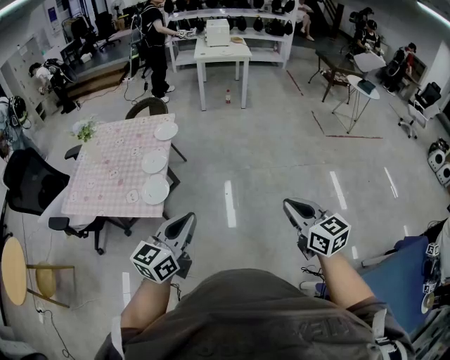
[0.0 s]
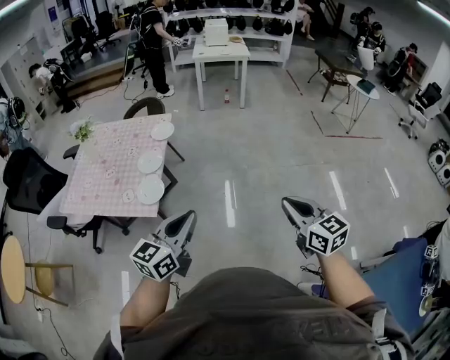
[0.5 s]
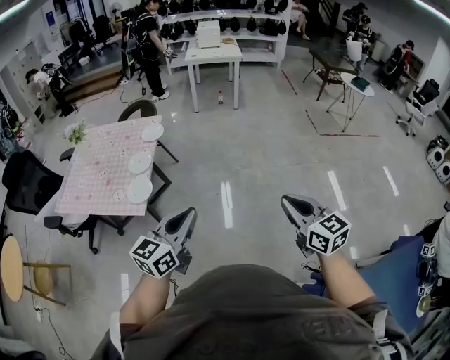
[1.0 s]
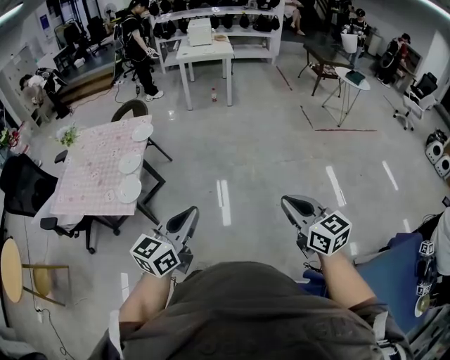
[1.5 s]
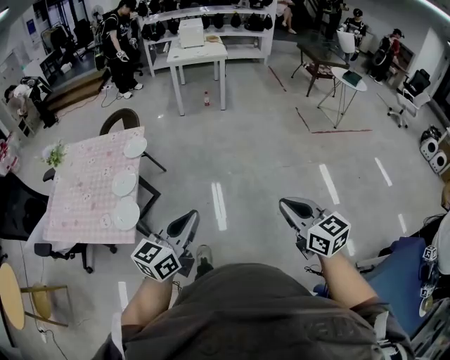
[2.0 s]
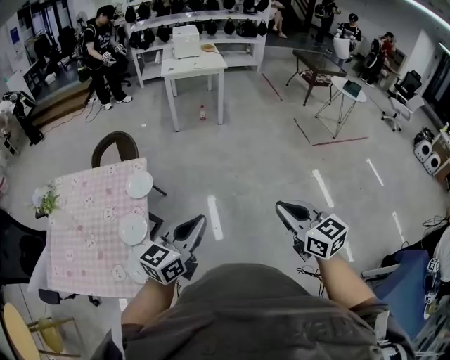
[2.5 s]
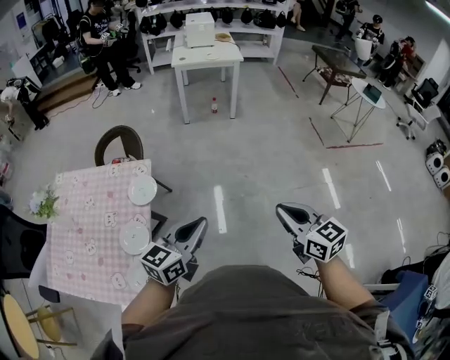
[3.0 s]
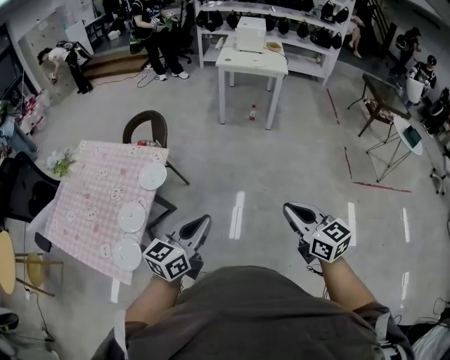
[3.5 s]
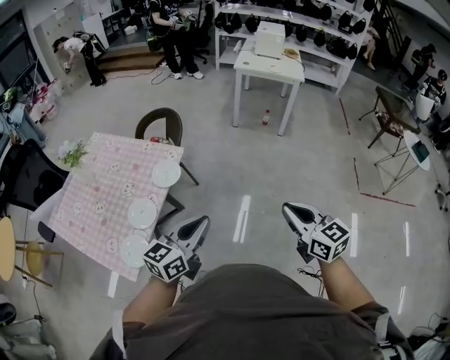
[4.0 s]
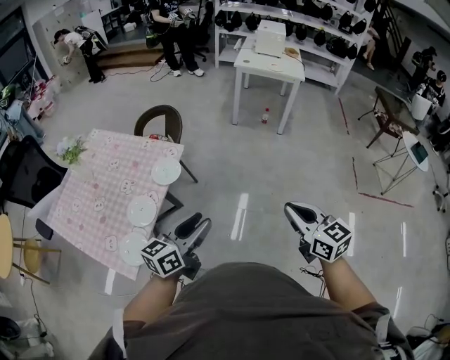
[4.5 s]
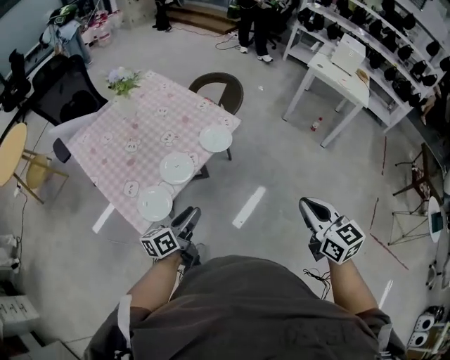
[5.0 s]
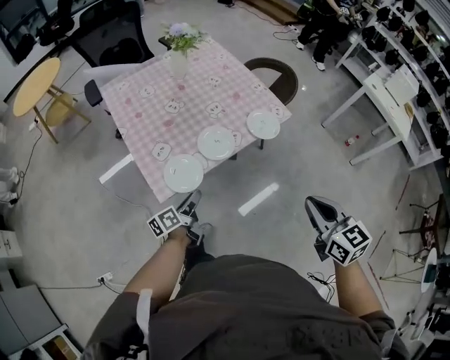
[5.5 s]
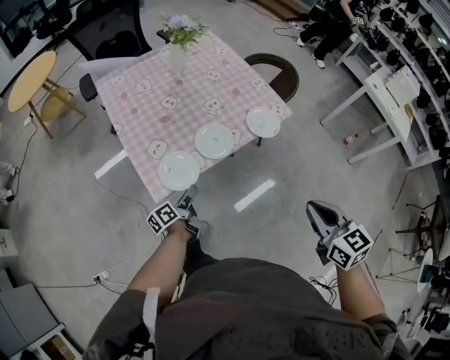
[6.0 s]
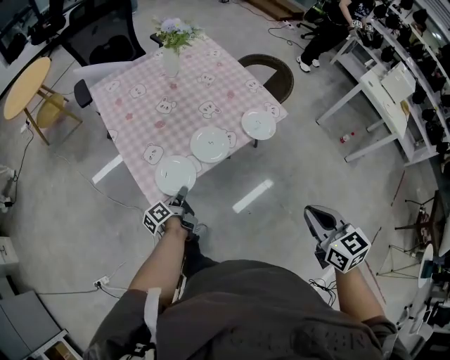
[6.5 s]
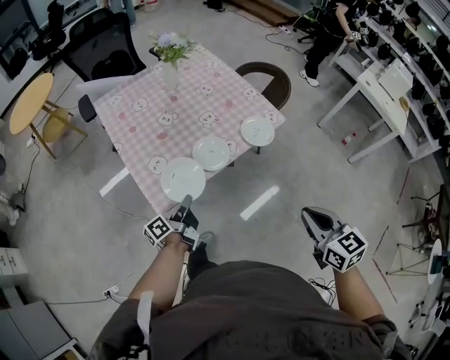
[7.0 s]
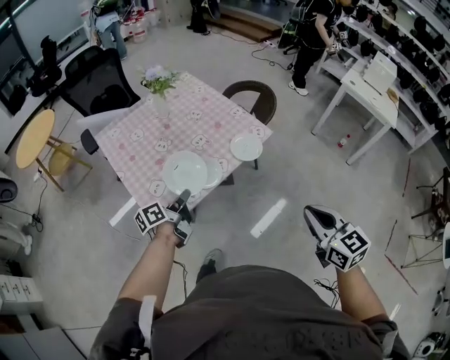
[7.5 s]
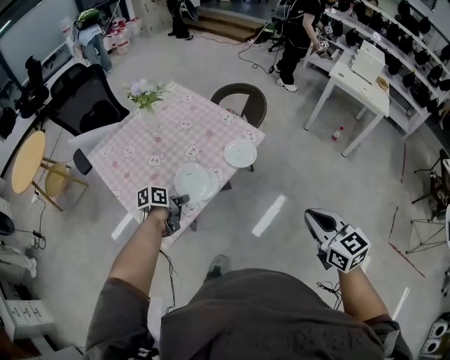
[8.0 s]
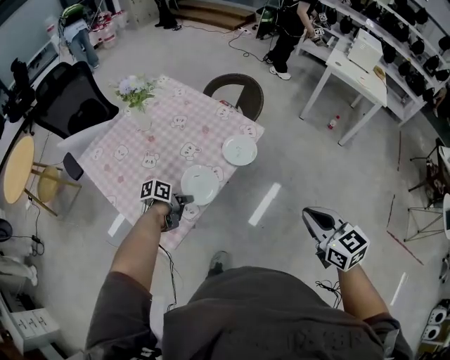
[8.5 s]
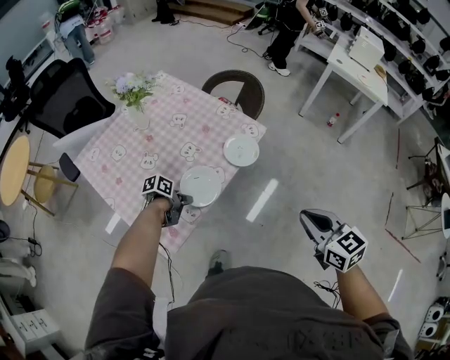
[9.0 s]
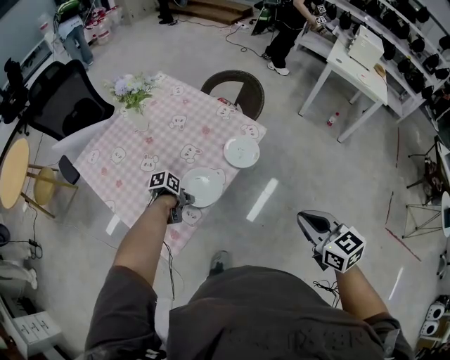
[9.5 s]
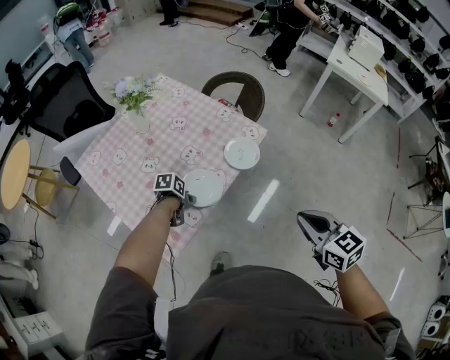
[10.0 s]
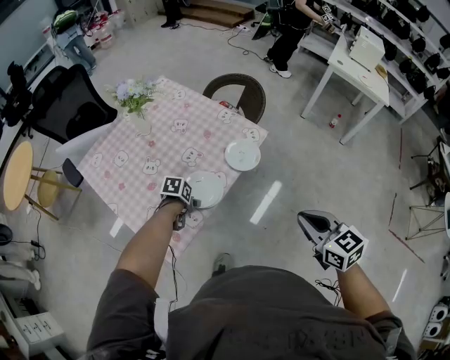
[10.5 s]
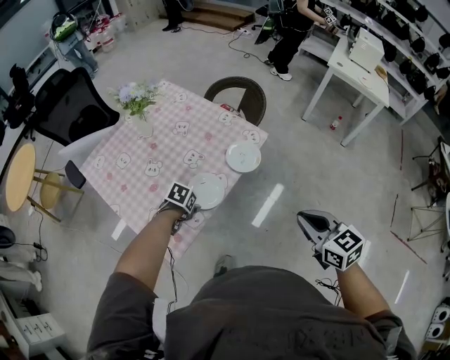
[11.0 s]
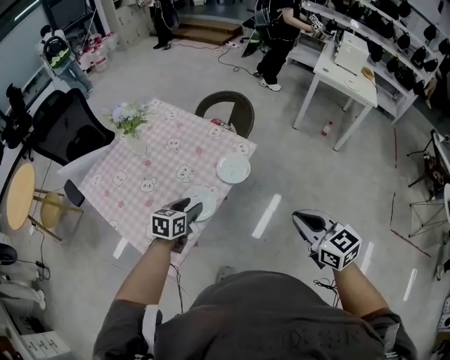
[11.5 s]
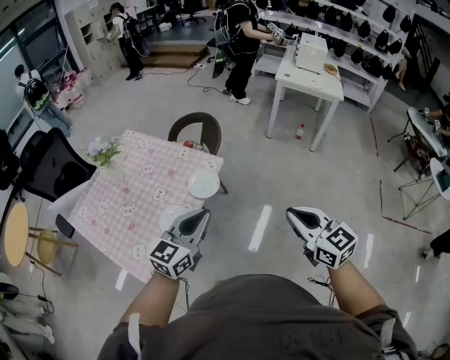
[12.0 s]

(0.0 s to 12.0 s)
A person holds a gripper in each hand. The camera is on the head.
0.0 s - 2.0 s: The grippers both shift to the right and forward by approximately 15 cm.
2.0 s - 4.0 s: Both grippers move forward, roughly 35 cm. The right gripper turns by approximately 20 degrees.
4.0 s - 6.0 s: The right gripper changes place by roughly 25 cm, and rotates some 40 degrees. The left gripper travels downward by some 30 cm, swivels approximately 80 degrees, and opens its fingers.
6.0 s - 8.0 s: The left gripper ends up some 15 cm from where it was, changes its angle by roughly 50 degrees, and closes. The right gripper changes place by approximately 5 cm.
8.0 s - 10.0 s: The right gripper travels to the left by approximately 5 cm; the left gripper travels downward by some 10 cm, changes its angle by about 30 degrees, and opens up.
10.0 s - 12.0 s: The right gripper travels to the right and upward by about 15 cm; the left gripper goes roughly 40 cm upward and to the right, tilts its fingers roughly 50 degrees upward, and closes.

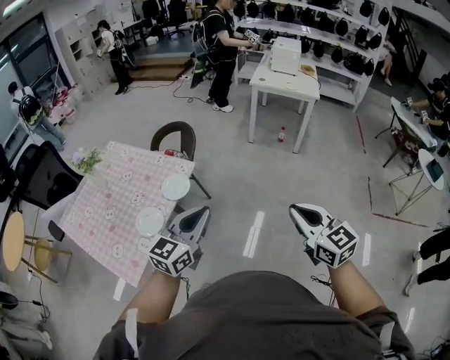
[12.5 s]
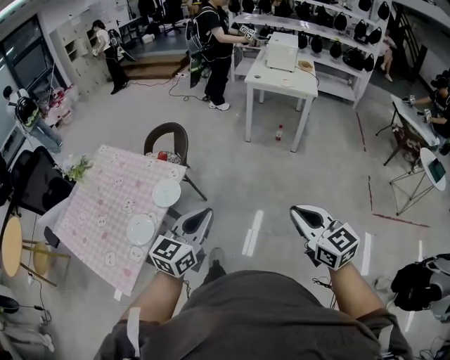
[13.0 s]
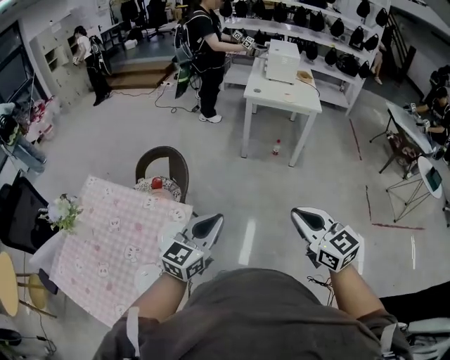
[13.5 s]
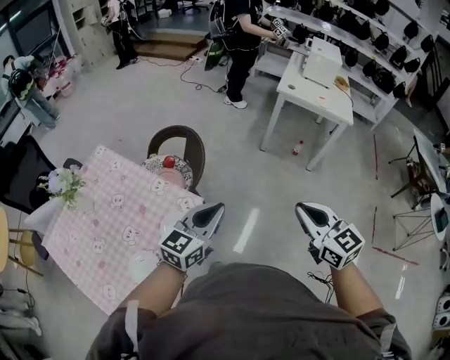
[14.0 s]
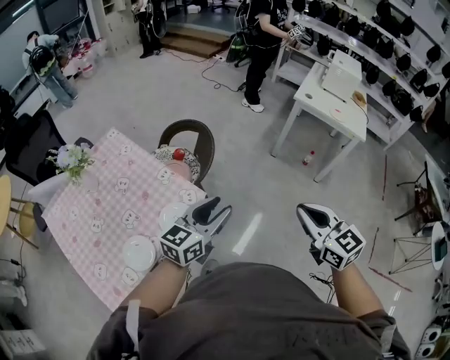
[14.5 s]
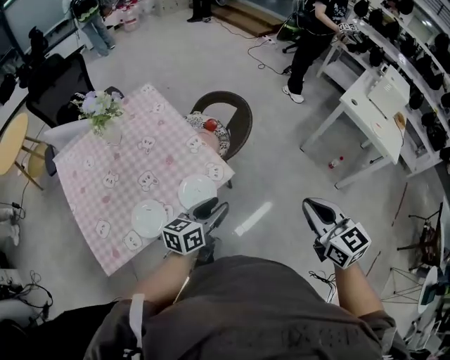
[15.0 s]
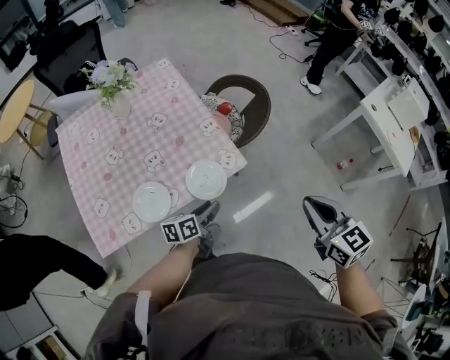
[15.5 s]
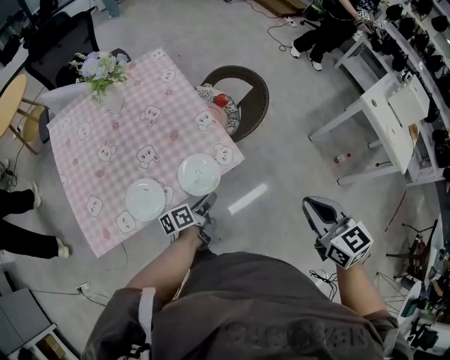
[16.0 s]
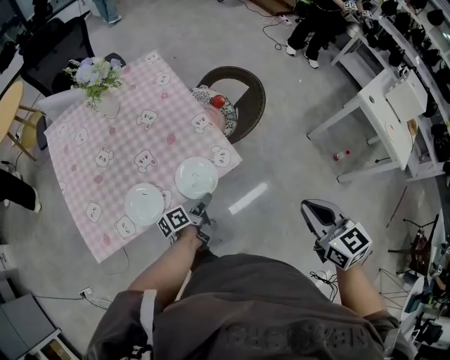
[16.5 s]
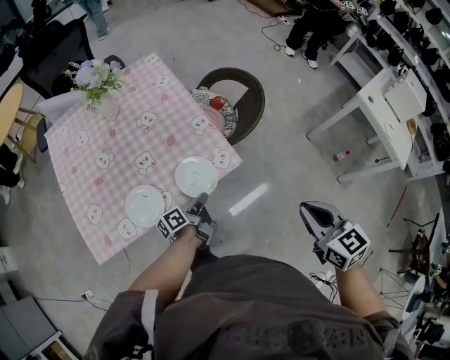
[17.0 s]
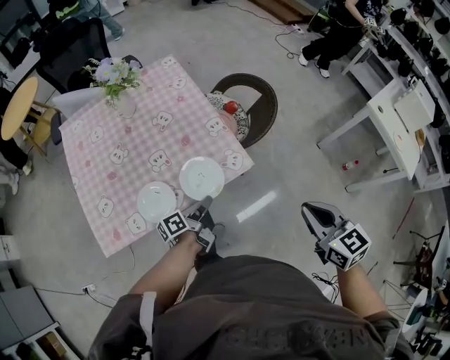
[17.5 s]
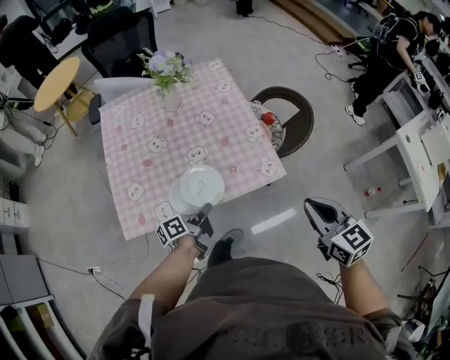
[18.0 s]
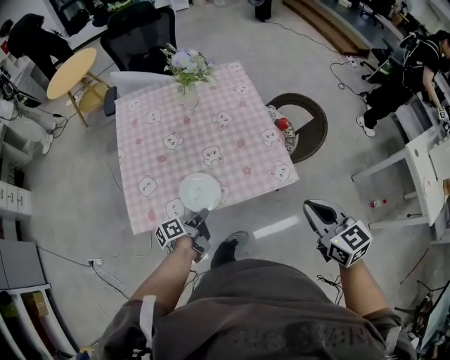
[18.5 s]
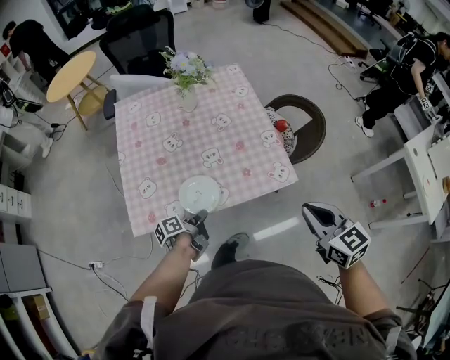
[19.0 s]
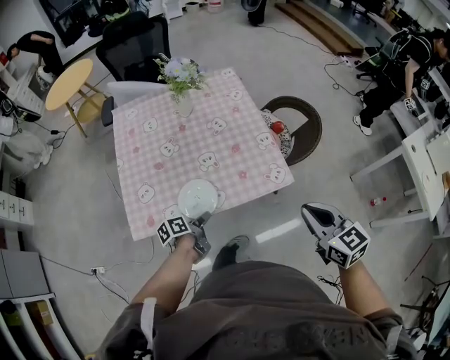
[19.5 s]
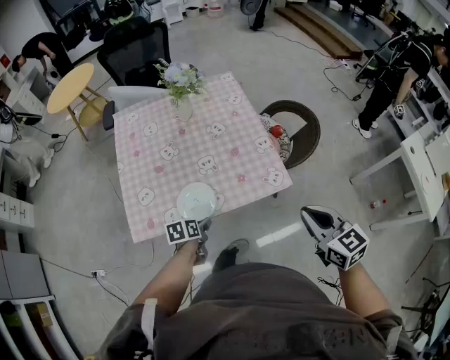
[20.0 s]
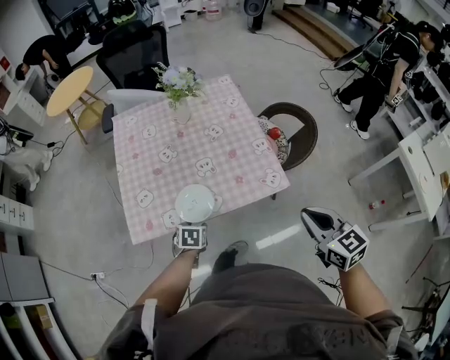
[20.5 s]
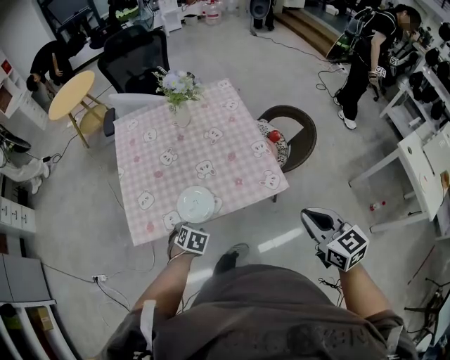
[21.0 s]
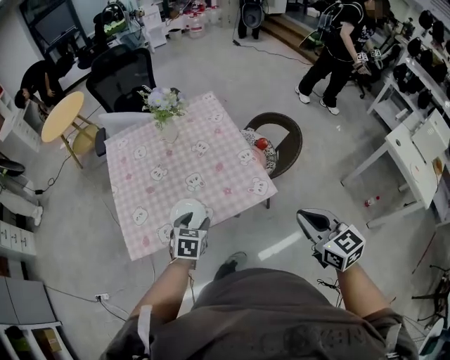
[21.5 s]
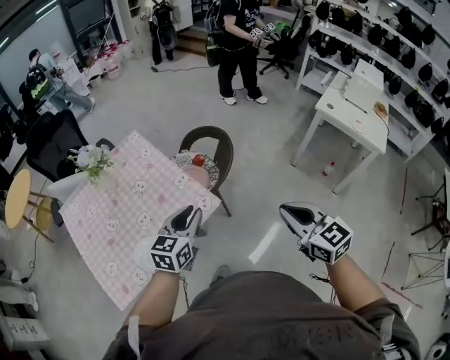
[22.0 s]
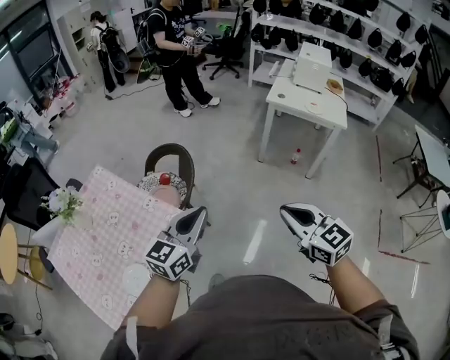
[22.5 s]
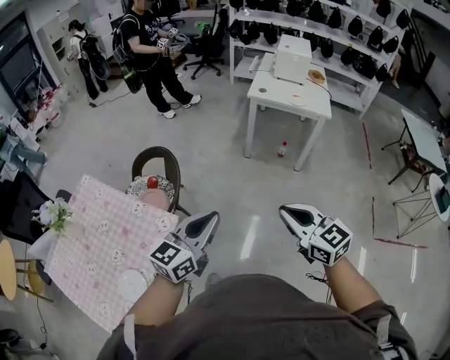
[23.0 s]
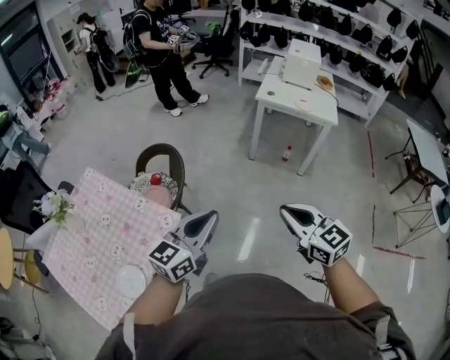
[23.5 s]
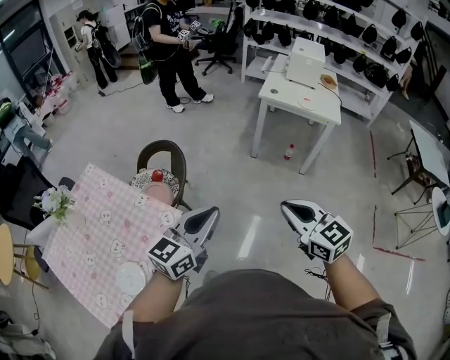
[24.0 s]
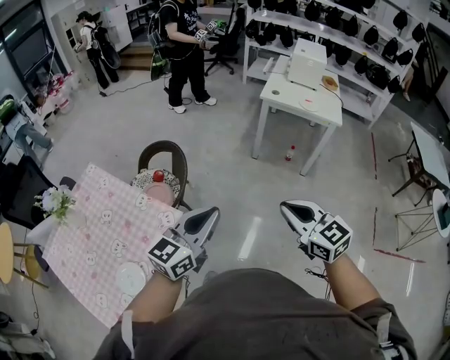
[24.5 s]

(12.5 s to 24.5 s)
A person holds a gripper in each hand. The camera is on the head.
12.5 s - 14.5 s: Both grippers travel together forward, some 30 cm. The left gripper opens.
14.5 s - 16.5 s: The left gripper moves downward, approximately 30 cm, and twists roughly 70 degrees counterclockwise, seen from behind; the right gripper moves roughly 15 cm, and turns by about 20 degrees.
16.5 s - 18.5 s: Both grippers move to the left, roughly 15 cm. The left gripper closes up.
18.5 s - 20.5 s: The left gripper tips its fingers downward by approximately 40 degrees, and opens its fingers.
20.5 s - 22.5 s: The right gripper ends up roughly 30 cm from where it was, and swivels approximately 40 degrees. The left gripper shifts by some 50 cm, tilts its fingers about 60 degrees upward, and closes its fingers.
22.5 s - 24.5 s: The left gripper is displaced to the right by about 5 cm.

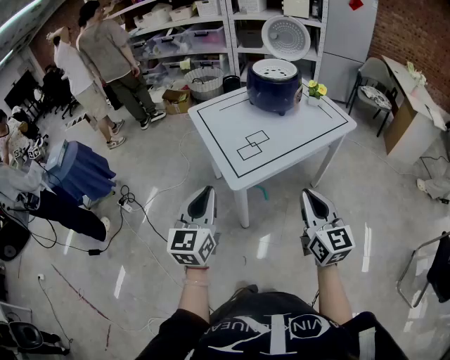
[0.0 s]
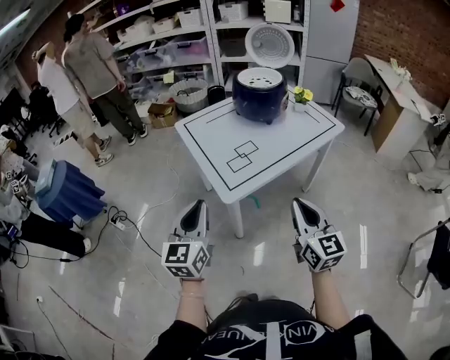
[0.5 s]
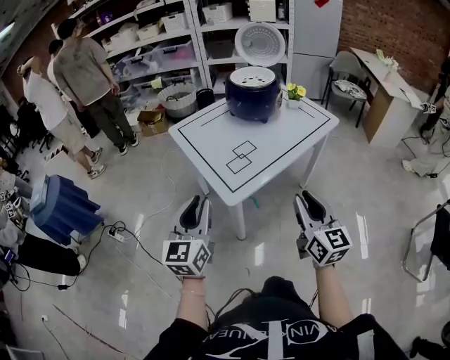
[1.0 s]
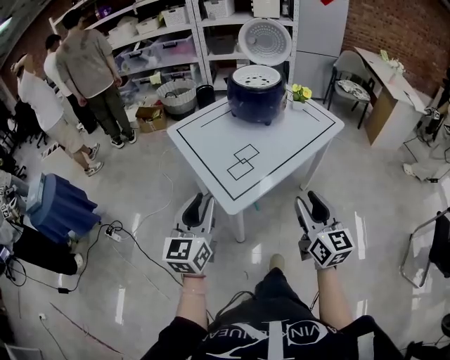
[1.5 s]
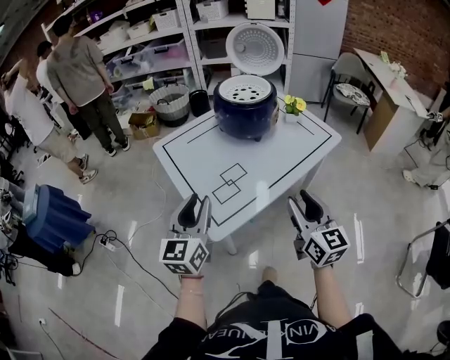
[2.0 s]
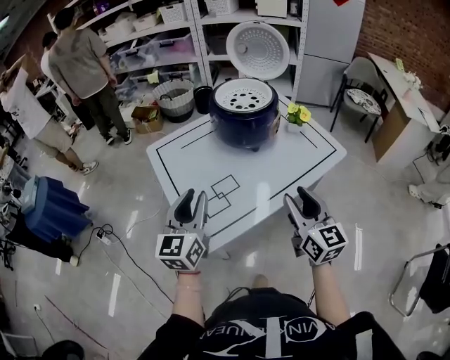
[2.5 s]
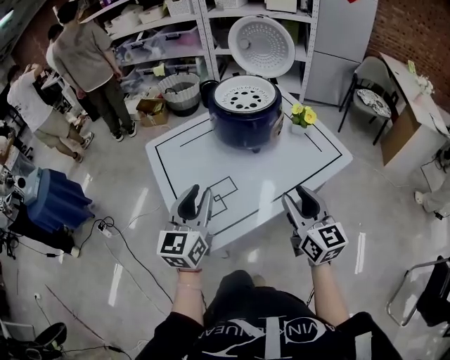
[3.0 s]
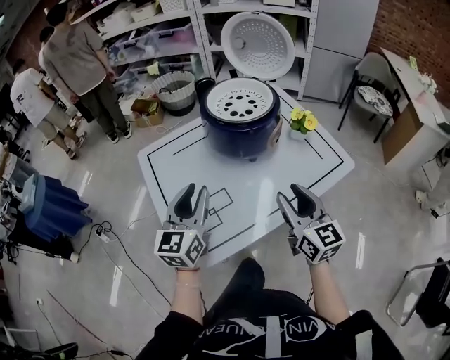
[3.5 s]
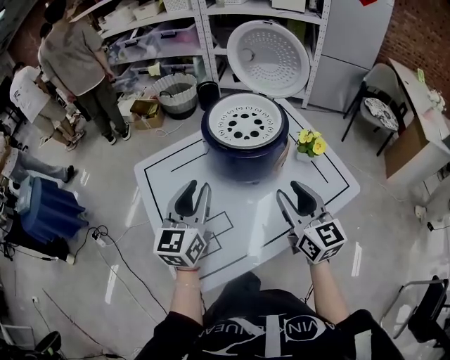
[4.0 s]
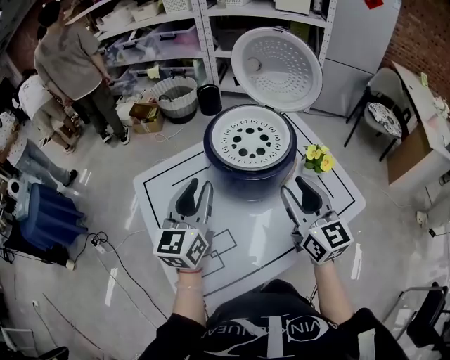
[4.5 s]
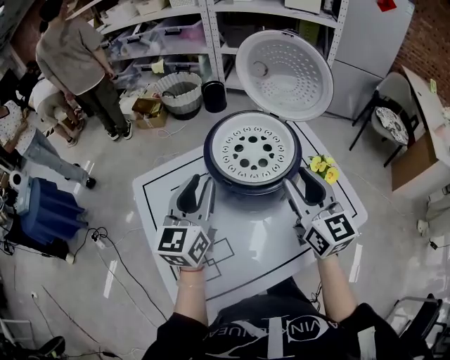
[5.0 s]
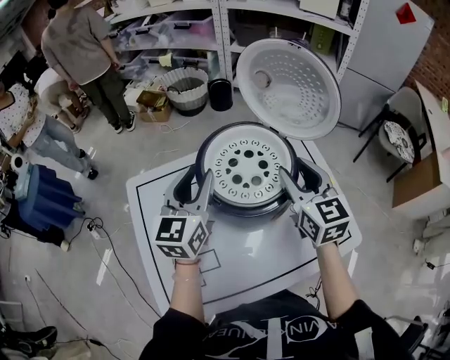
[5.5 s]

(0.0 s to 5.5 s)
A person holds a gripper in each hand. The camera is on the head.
0.0 s - 2.0 s: Both grippers travel together forward, roughly 20 cm. The right gripper opens its fingers.
2.0 s - 3.5 s: The left gripper heads forward and to the right, covering about 20 cm. The right gripper goes approximately 20 cm forward.
3.5 s - 5.5 s: Both grippers travel together forward, about 30 cm.
